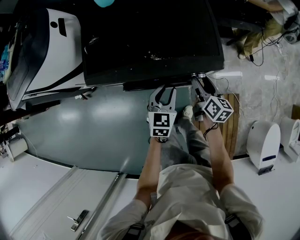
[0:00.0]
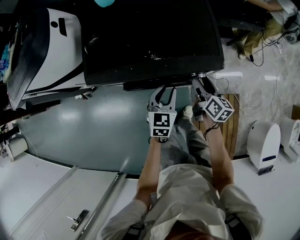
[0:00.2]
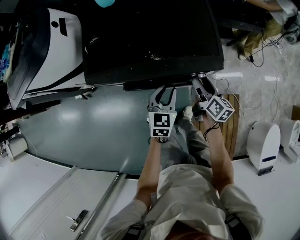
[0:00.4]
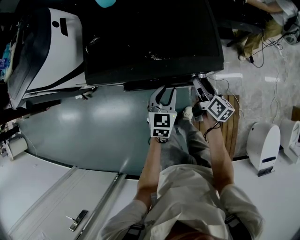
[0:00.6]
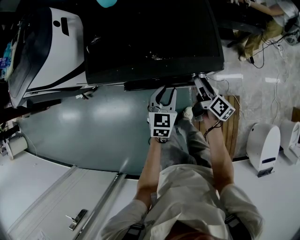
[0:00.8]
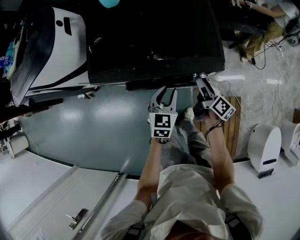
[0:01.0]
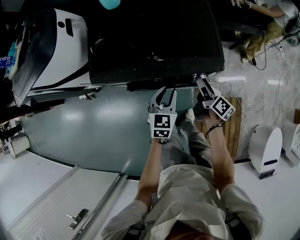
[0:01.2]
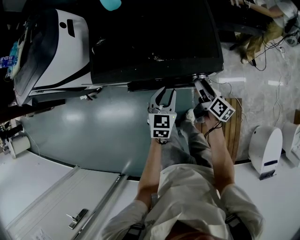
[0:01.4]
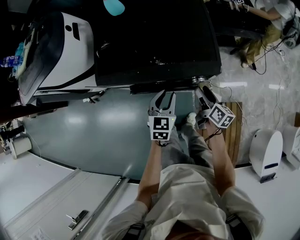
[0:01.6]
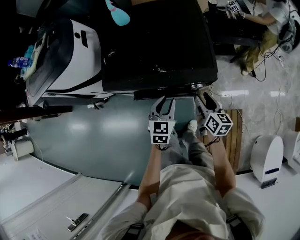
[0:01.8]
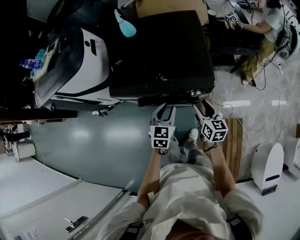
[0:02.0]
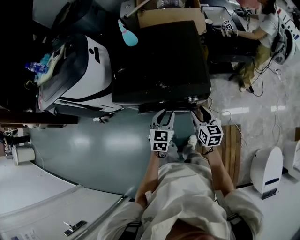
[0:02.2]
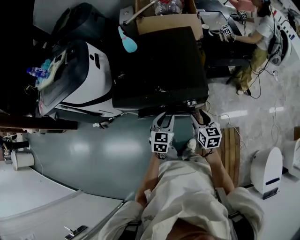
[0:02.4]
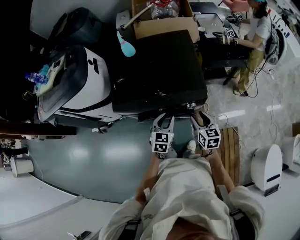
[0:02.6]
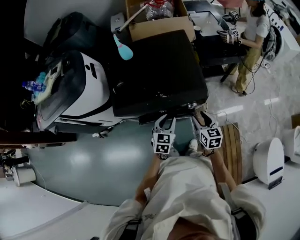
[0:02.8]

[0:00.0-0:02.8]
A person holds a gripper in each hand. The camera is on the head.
0:01.4 to 0:02.8: The left gripper goes roughly 10 cm upward; the right gripper heads upward, covering roughly 10 cm, and rolls counterclockwise, seen from behind, by approximately 40 degrees.

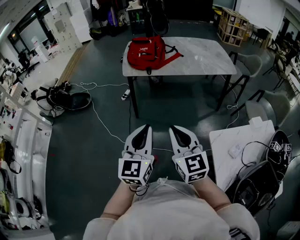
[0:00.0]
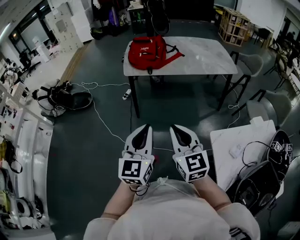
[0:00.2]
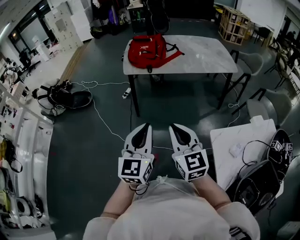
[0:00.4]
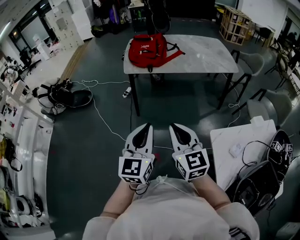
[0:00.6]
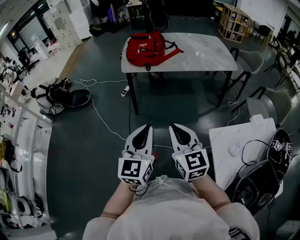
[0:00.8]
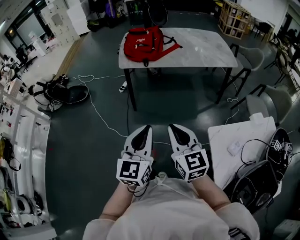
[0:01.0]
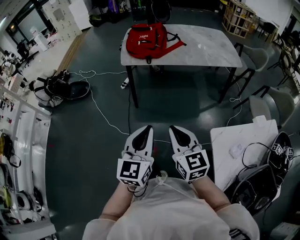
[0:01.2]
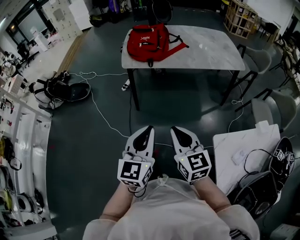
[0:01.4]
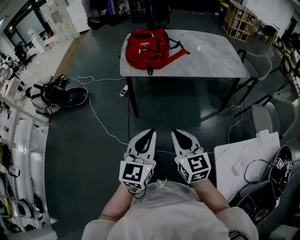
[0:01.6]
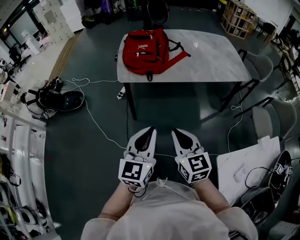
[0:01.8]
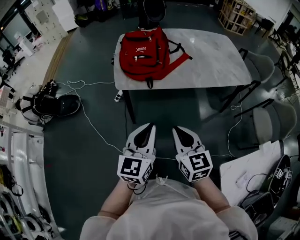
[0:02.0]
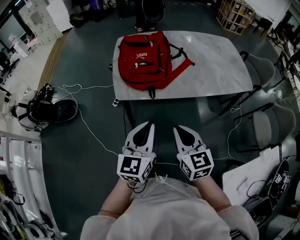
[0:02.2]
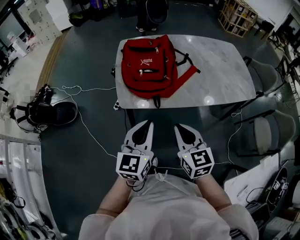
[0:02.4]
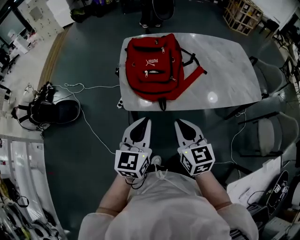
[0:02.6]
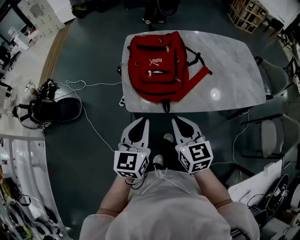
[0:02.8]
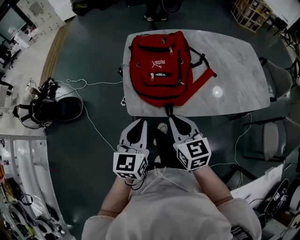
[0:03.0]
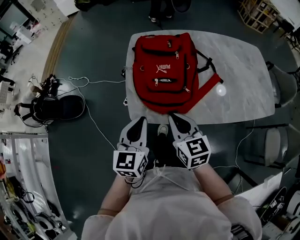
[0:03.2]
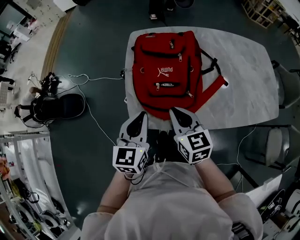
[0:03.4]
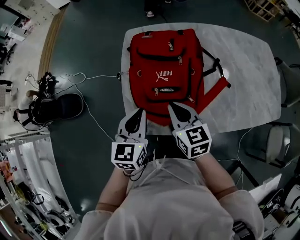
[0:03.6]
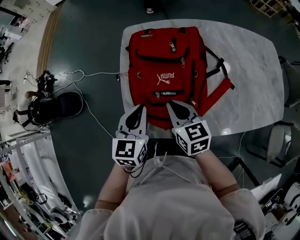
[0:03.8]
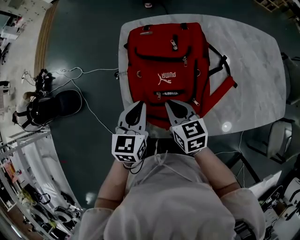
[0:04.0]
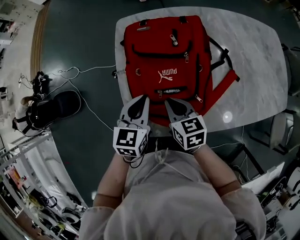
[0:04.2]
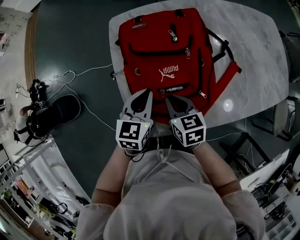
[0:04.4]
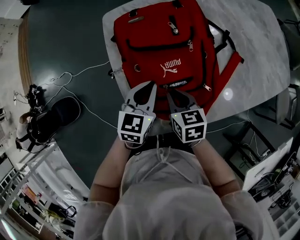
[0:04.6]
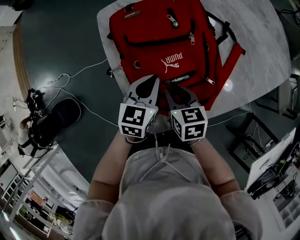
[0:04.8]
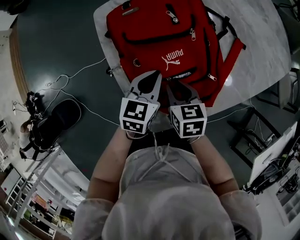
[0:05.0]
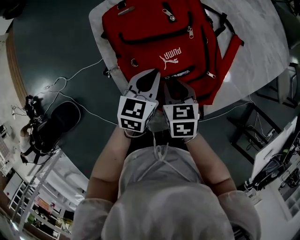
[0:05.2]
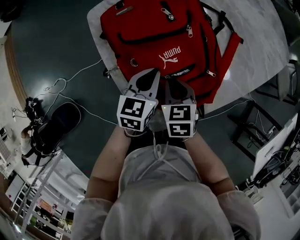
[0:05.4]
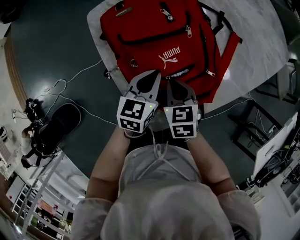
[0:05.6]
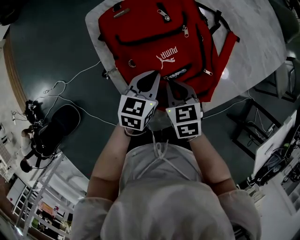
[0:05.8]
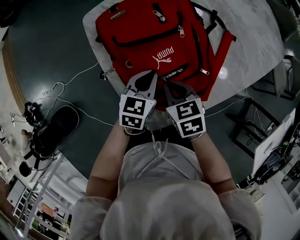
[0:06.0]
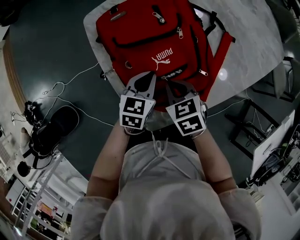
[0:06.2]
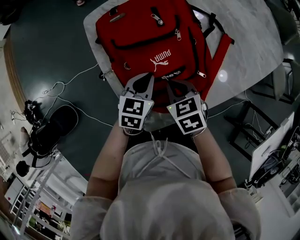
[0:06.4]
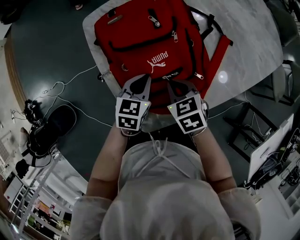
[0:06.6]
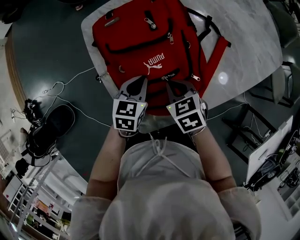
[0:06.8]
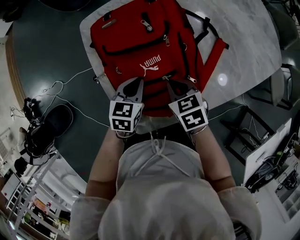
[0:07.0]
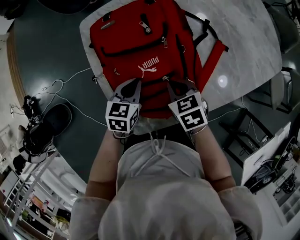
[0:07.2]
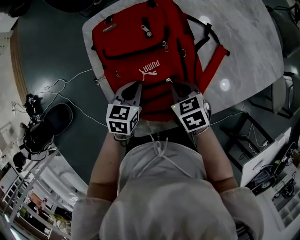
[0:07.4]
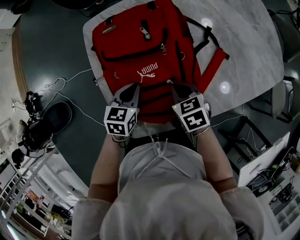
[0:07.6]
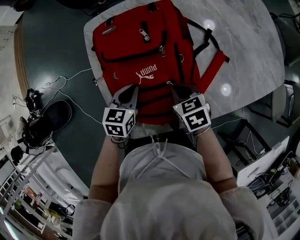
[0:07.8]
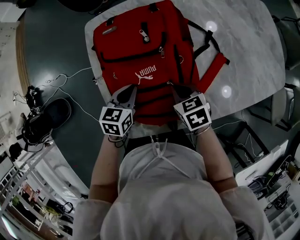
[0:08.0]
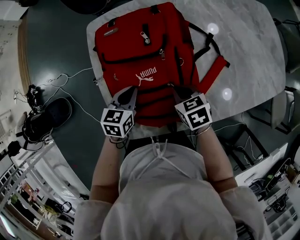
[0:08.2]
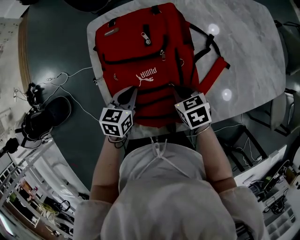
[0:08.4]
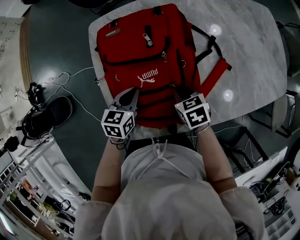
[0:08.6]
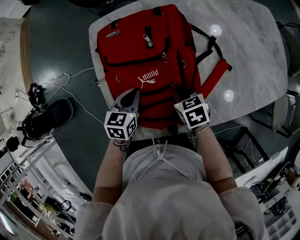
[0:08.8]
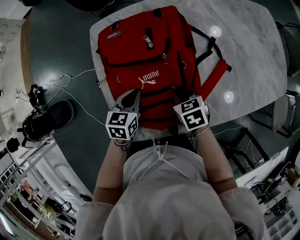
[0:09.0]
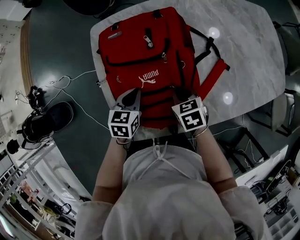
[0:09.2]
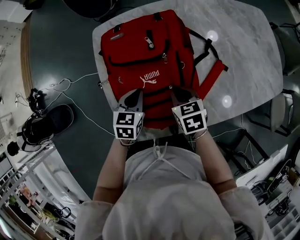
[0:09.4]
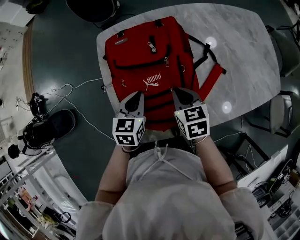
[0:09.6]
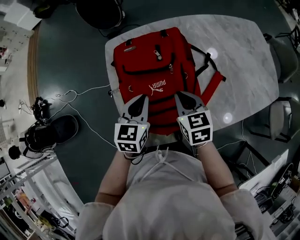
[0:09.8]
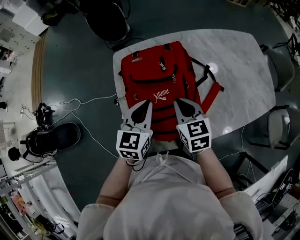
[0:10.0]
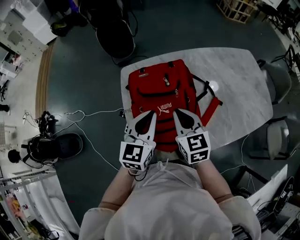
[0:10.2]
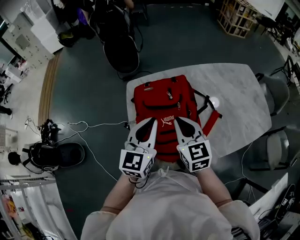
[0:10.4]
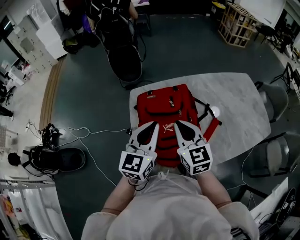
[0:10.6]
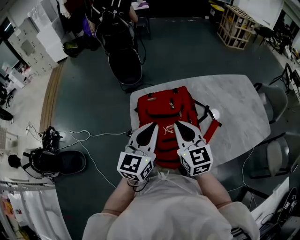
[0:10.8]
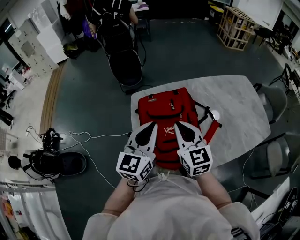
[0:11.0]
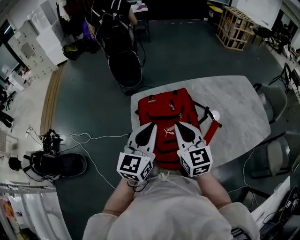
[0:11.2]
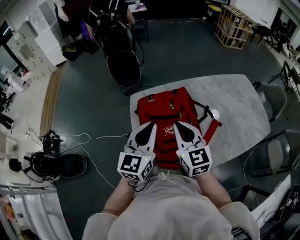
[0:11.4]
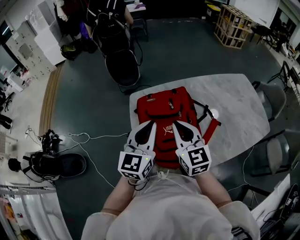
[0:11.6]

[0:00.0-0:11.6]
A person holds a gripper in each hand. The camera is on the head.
0:00.0 to 0:01.4: The left gripper travels forward by some 5 cm. The right gripper shifts roughly 10 cm forward and downward.
0:01.4 to 0:02.8: The pair of grippers is taken forward, some 50 cm.
0:02.8 to 0:04.4: Both grippers travel together forward and downward, about 35 cm. The left gripper changes its angle by about 20 degrees; the right gripper turns by about 30 degrees.
0:04.4 to 0:05.8: The left gripper moves downward, about 5 cm, and turns by some 20 degrees.
0:05.8 to 0:07.2: The right gripper shifts about 5 cm to the right.
0:07.2 to 0:08.8: The right gripper ends up approximately 5 cm from where it was.
0:08.8 to 0:10.2: Both grippers move upward, roughly 25 cm. The left gripper turns by about 30 degrees. The right gripper tips its fingers upward by approximately 30 degrees.
0:10.2 to 0:11.6: Both grippers travel together upward, approximately 10 cm.

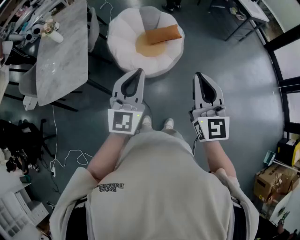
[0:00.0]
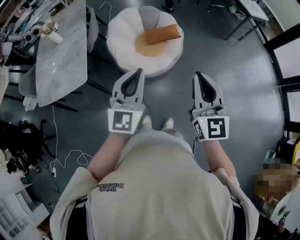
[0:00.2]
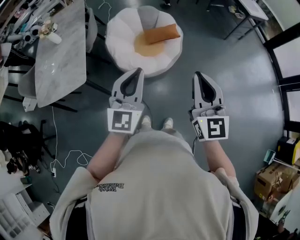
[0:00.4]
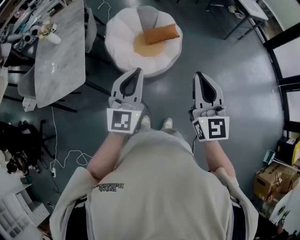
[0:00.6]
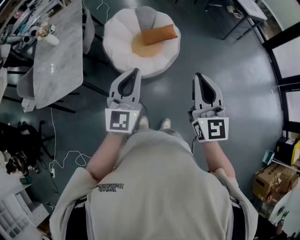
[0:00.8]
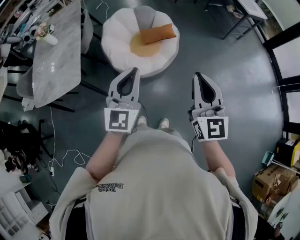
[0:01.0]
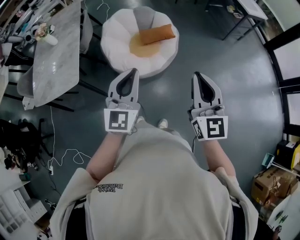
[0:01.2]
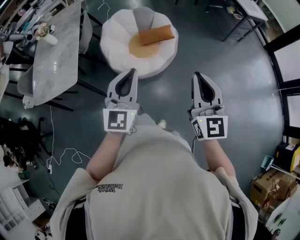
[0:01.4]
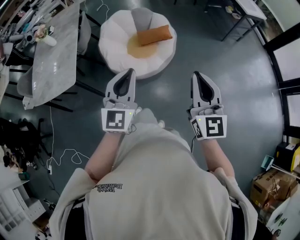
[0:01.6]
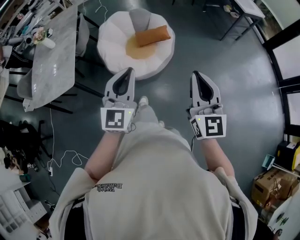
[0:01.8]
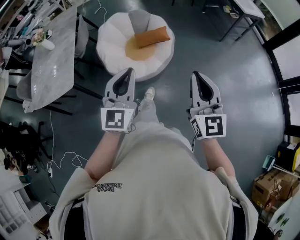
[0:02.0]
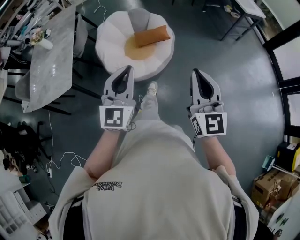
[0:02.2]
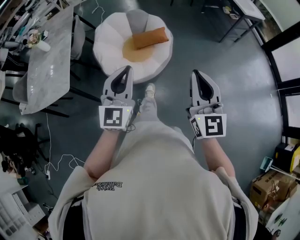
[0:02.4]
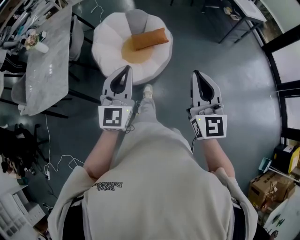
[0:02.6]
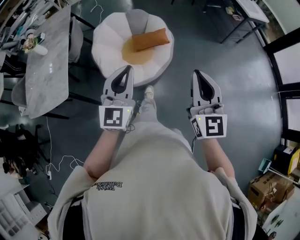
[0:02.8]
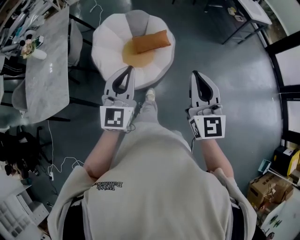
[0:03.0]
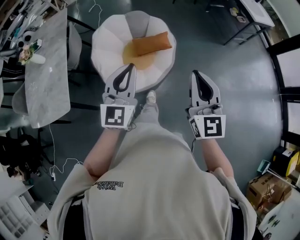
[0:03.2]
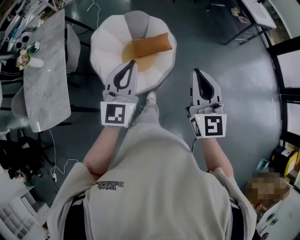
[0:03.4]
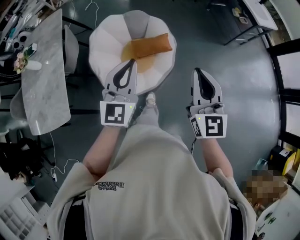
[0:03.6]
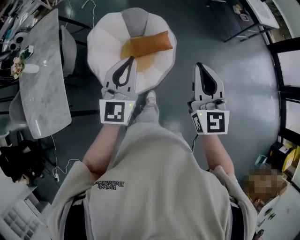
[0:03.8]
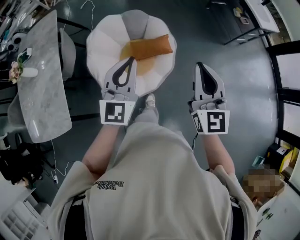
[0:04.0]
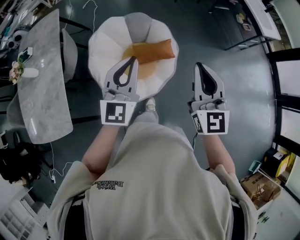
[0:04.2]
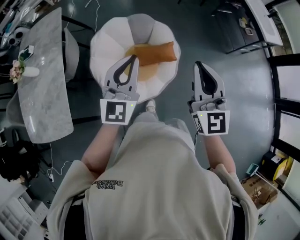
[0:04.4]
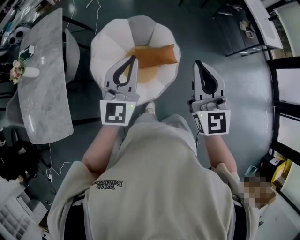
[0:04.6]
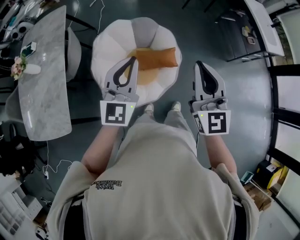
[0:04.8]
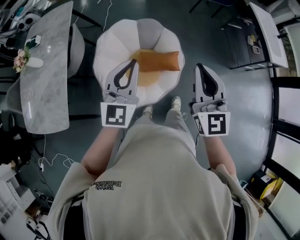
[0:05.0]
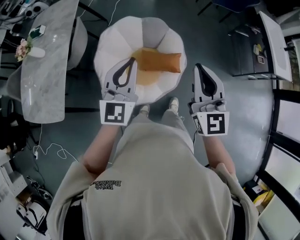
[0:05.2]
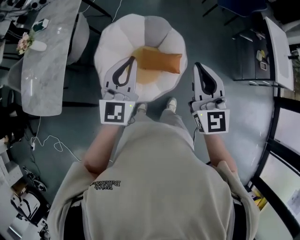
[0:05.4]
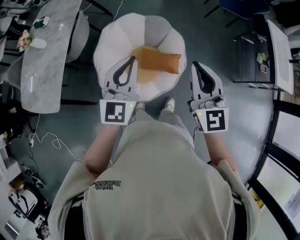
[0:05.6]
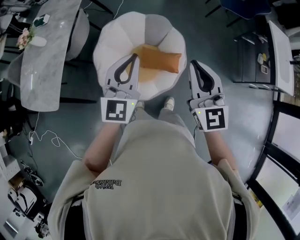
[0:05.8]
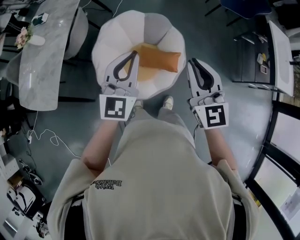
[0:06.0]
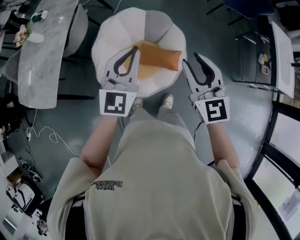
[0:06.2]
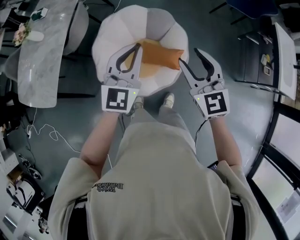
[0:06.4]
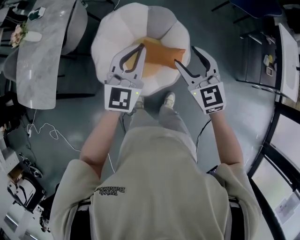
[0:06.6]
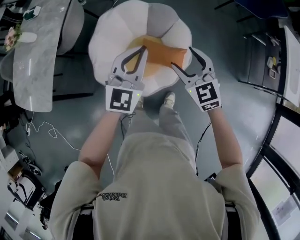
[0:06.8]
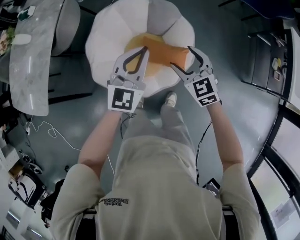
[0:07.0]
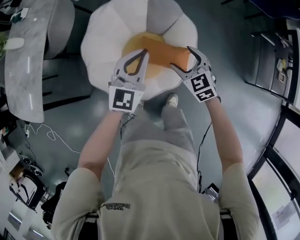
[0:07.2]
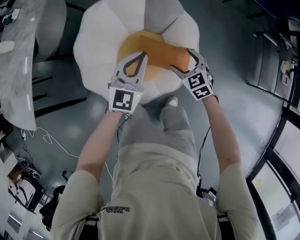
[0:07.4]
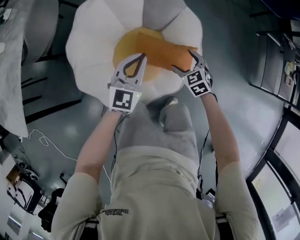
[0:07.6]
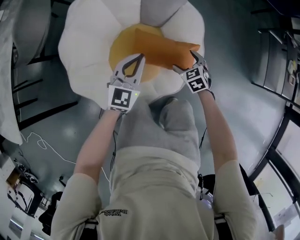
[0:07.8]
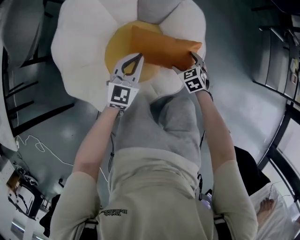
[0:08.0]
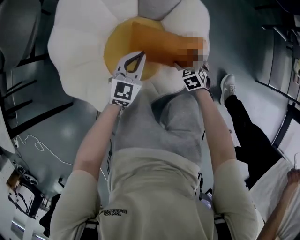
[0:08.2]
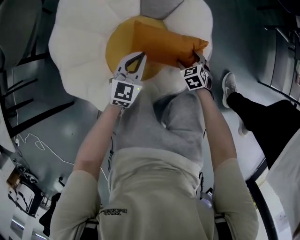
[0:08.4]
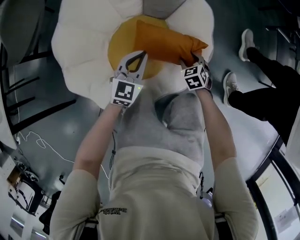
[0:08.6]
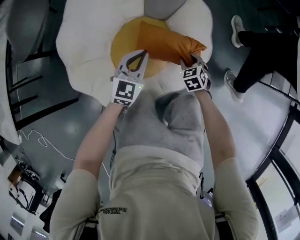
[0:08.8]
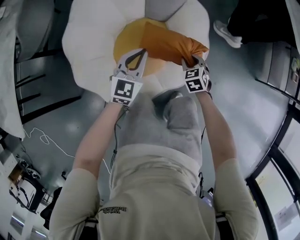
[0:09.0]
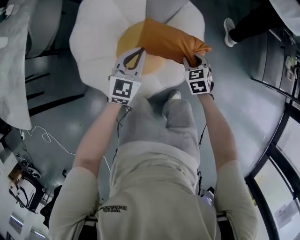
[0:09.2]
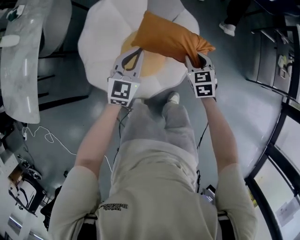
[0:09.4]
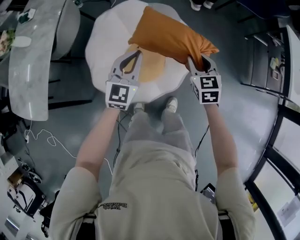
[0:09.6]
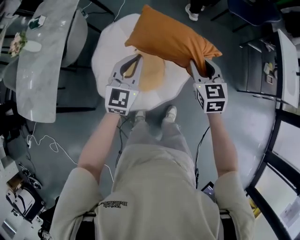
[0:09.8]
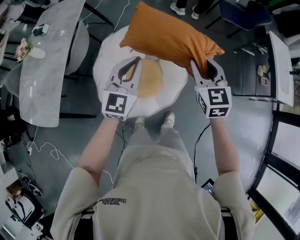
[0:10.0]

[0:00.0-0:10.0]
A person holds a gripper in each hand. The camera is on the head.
0:00.0 to 0:01.4: The two grippers go approximately 10 cm to the right.
0:01.4 to 0:02.8: Both grippers travel together forward, some 10 cm.
0:02.8 to 0:04.2: Both grippers travel together forward, some 30 cm.
0:04.2 to 0:05.8: The left gripper moves forward, roughly 10 cm, and swivels roughly 20 degrees. Meanwhile the right gripper travels forward by some 15 cm, and turns by about 30 degrees.
0:05.8 to 0:07.2: The right gripper goes roughly 40 cm downward, points its fingers some 30 degrees further downward, and opens; the left gripper is displaced downward and forward by approximately 30 cm.
0:07.2 to 0:08.6: Both grippers move downward, some 35 cm. The right gripper rotates some 30 degrees, and closes its fingers.
0:08.6 to 0:10.0: The grippers both shift upward by roughly 60 cm. The right gripper tilts its fingers about 40 degrees upward.
